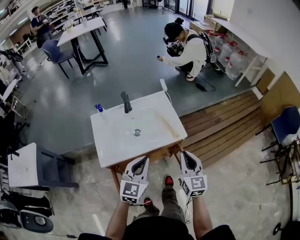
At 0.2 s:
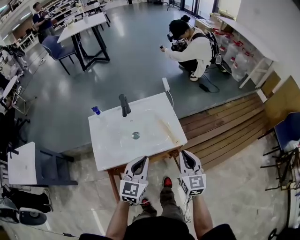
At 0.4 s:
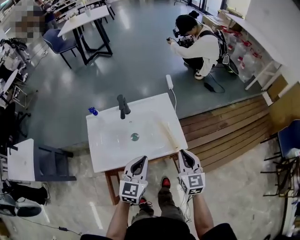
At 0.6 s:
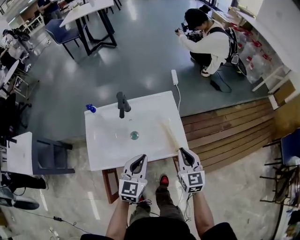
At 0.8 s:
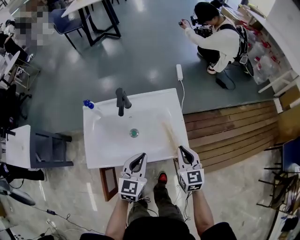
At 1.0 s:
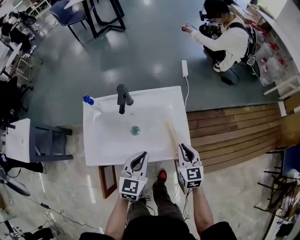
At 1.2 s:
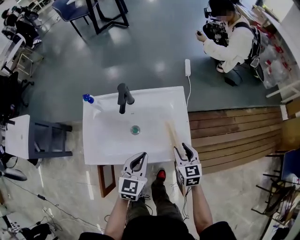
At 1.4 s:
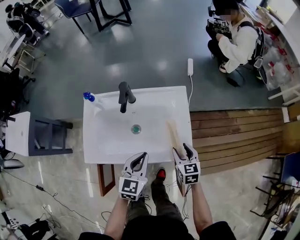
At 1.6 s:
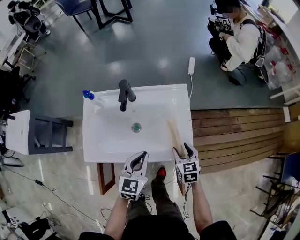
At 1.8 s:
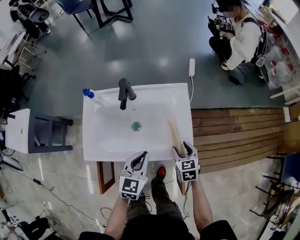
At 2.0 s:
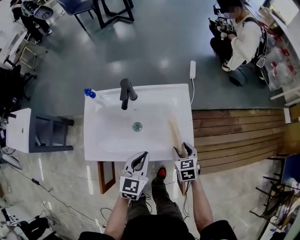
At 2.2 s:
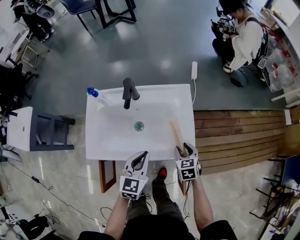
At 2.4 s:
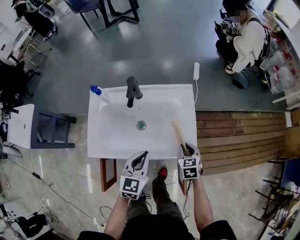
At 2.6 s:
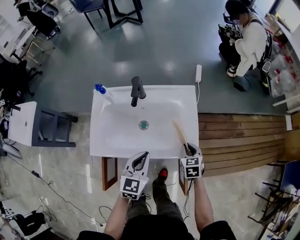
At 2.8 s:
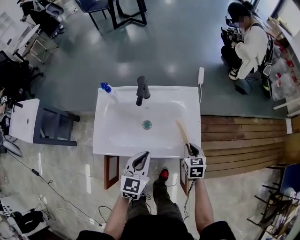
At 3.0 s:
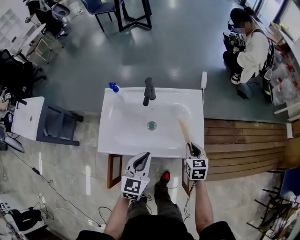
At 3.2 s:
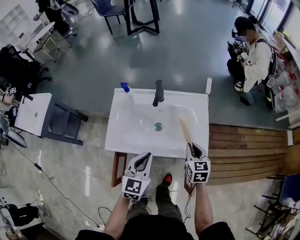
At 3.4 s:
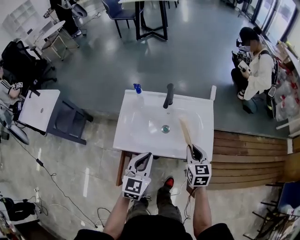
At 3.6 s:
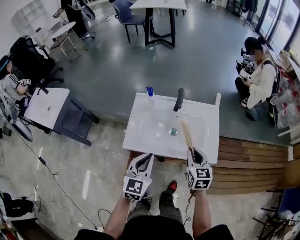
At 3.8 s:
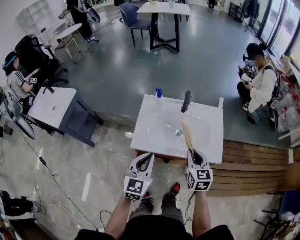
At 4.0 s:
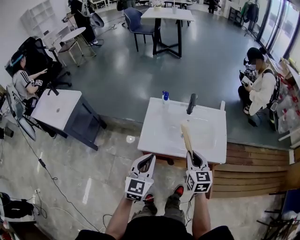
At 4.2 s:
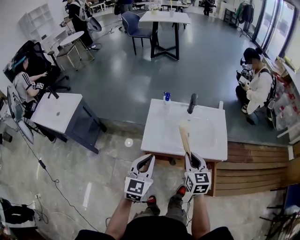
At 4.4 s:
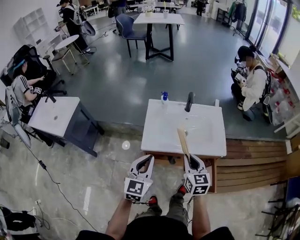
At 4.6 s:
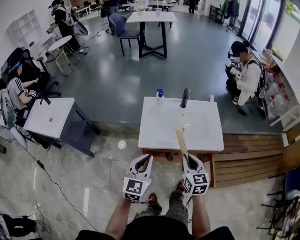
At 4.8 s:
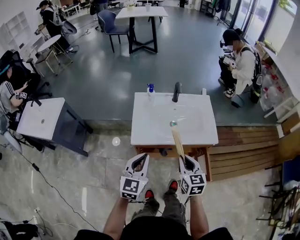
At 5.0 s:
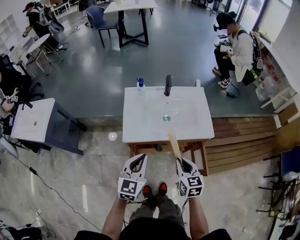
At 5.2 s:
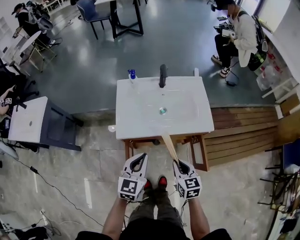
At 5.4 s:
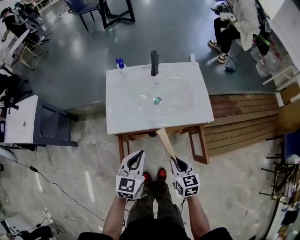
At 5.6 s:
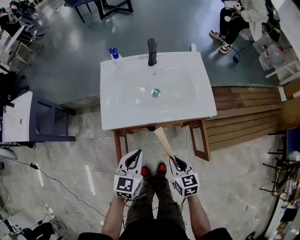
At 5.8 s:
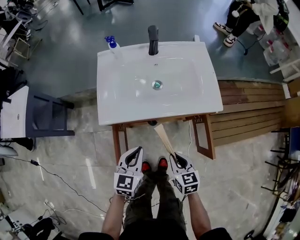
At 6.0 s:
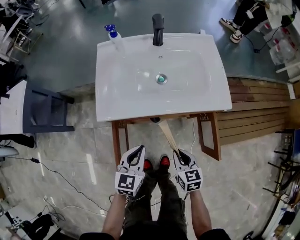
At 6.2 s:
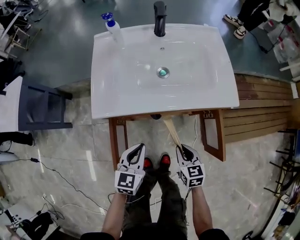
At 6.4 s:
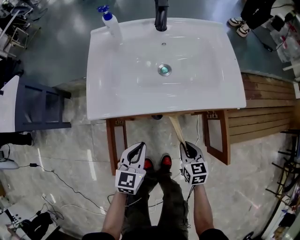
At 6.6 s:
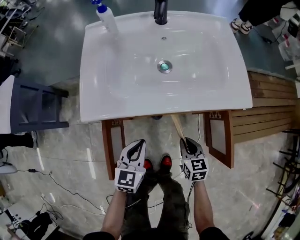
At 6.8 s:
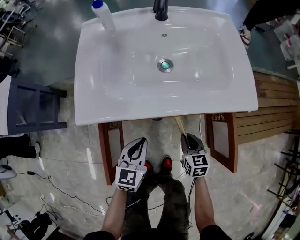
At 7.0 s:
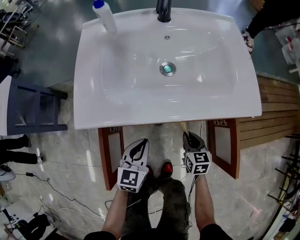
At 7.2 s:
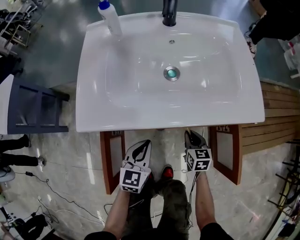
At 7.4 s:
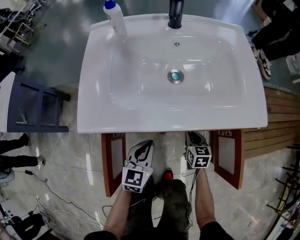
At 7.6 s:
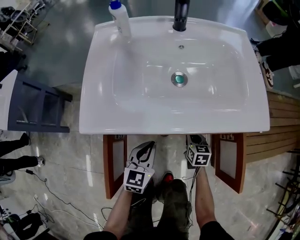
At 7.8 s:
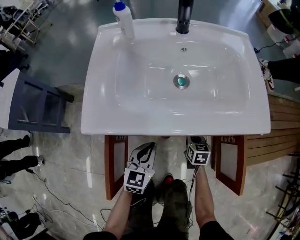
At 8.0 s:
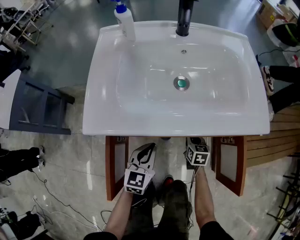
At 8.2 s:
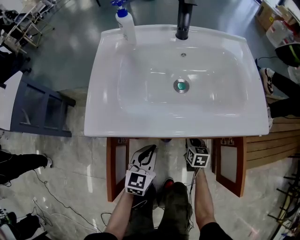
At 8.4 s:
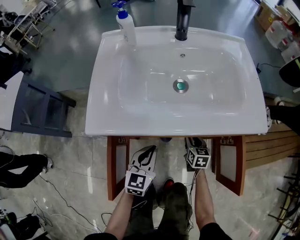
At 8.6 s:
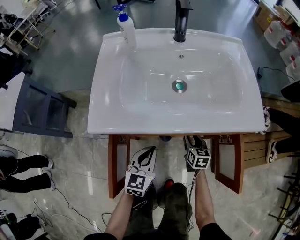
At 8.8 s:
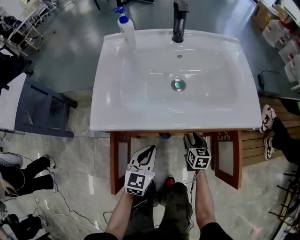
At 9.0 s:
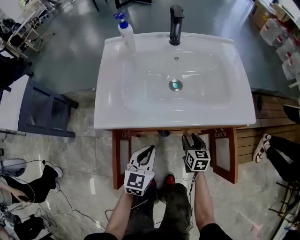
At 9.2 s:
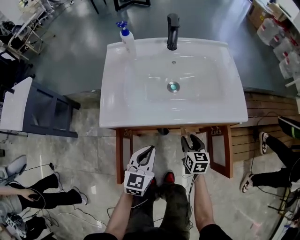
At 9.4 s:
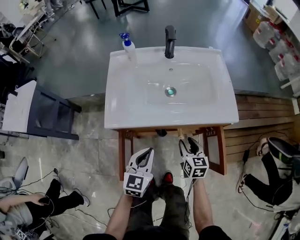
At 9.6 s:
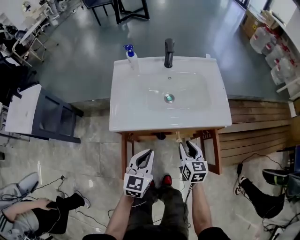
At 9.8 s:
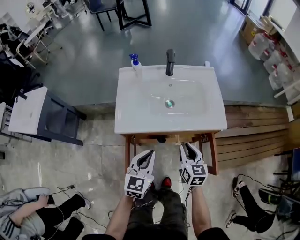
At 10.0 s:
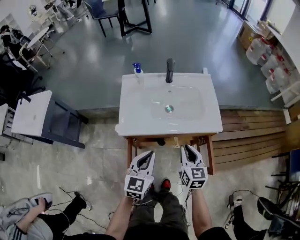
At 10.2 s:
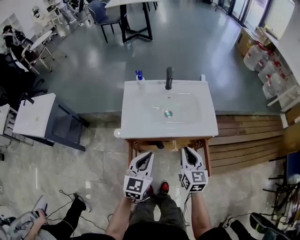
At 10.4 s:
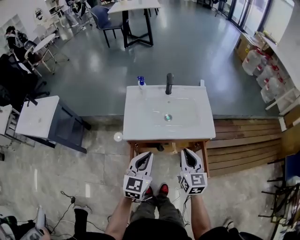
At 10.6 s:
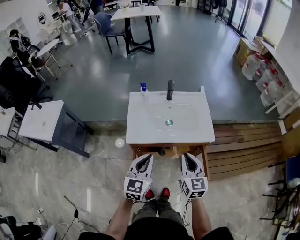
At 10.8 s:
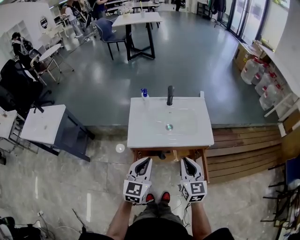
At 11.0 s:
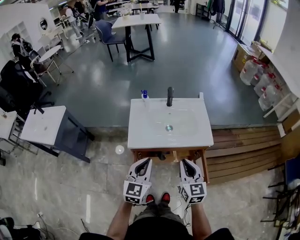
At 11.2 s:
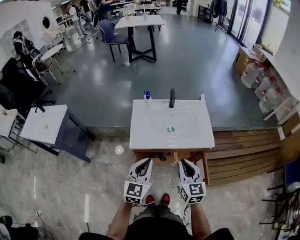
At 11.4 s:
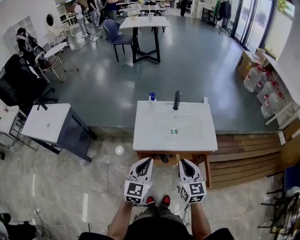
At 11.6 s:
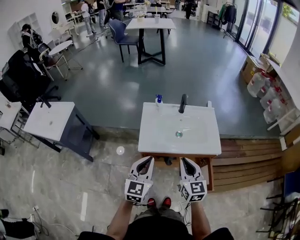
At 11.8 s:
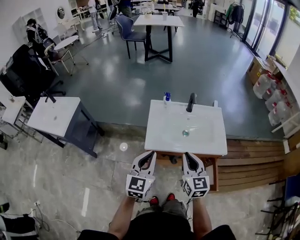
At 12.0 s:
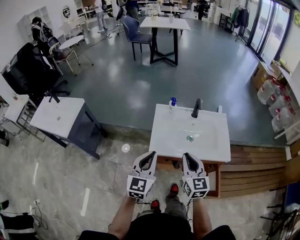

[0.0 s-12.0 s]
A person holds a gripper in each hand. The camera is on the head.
0.0 to 1.6 s: The right gripper travels downward and forward by roughly 30 cm, points its fingers about 30 degrees further downward, and opens up. The left gripper is displaced forward and downward by approximately 20 cm, and rotates roughly 30 degrees.
1.6 to 3.0 s: The left gripper ends up some 10 cm from where it was; the right gripper closes.
3.0 to 4.4 s: Both grippers travel together to the left, upward and backward, roughly 30 cm. The right gripper rotates some 20 degrees.
4.4 to 6.0 s: The two grippers go roughly 30 cm downward. The right gripper changes its angle by approximately 20 degrees. Meanwhile the left gripper rotates approximately 20 degrees.
6.0 to 7.6 s: Both grippers travel together downward and forward, some 25 cm.
7.6 to 9.0 s: Both grippers move upward, approximately 5 cm. The right gripper opens.
9.0 to 10.4 s: The two grippers go some 40 cm upward. The right gripper turns by some 20 degrees, and closes up.
10.4 to 12.0 s: The grippers both shift to the left and upward by approximately 15 cm.

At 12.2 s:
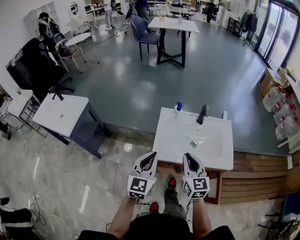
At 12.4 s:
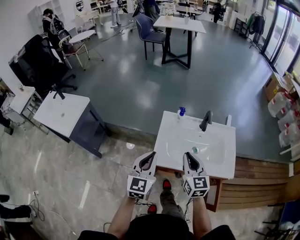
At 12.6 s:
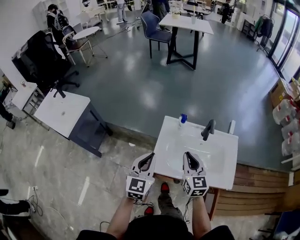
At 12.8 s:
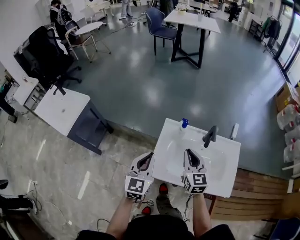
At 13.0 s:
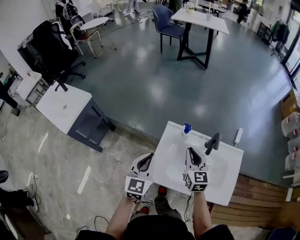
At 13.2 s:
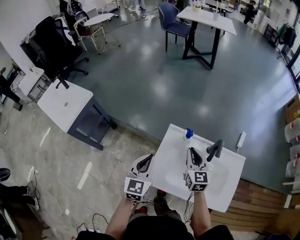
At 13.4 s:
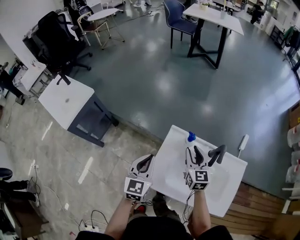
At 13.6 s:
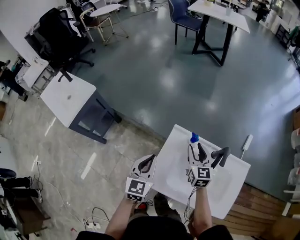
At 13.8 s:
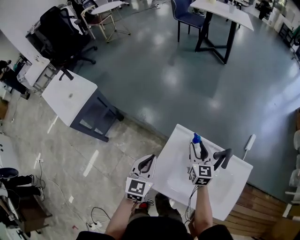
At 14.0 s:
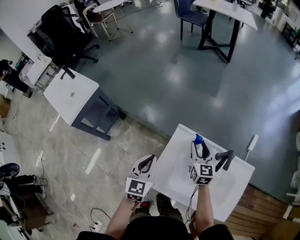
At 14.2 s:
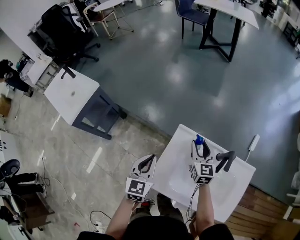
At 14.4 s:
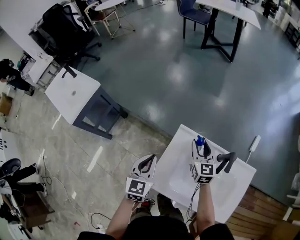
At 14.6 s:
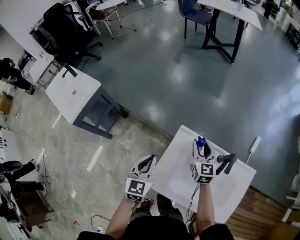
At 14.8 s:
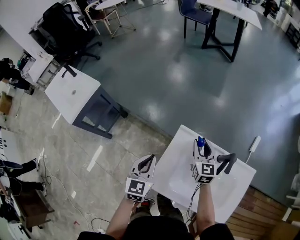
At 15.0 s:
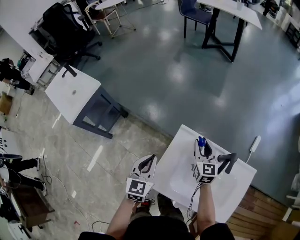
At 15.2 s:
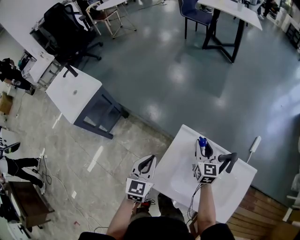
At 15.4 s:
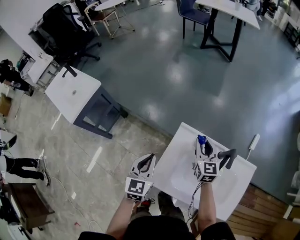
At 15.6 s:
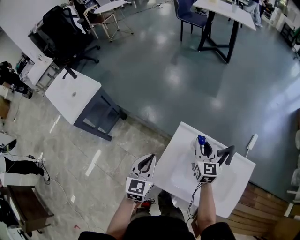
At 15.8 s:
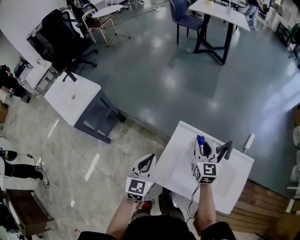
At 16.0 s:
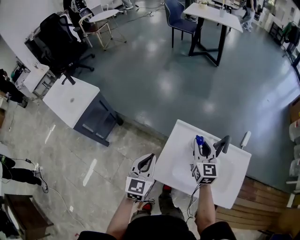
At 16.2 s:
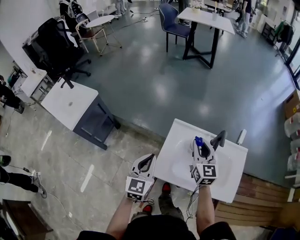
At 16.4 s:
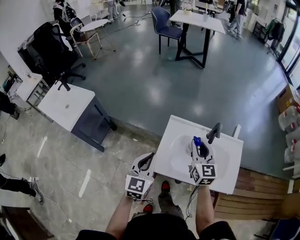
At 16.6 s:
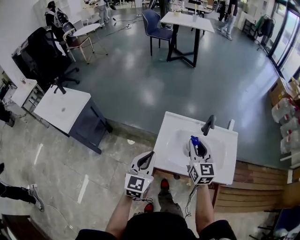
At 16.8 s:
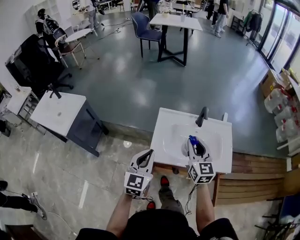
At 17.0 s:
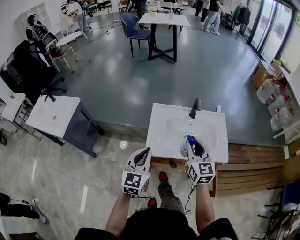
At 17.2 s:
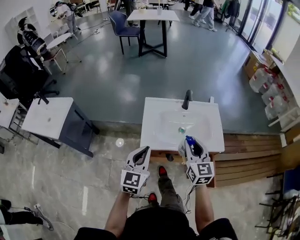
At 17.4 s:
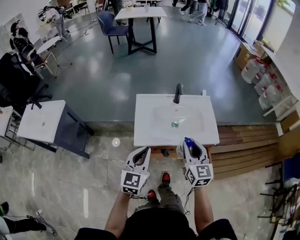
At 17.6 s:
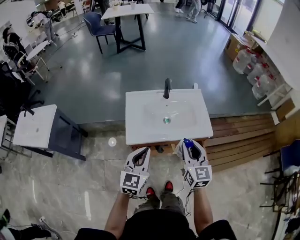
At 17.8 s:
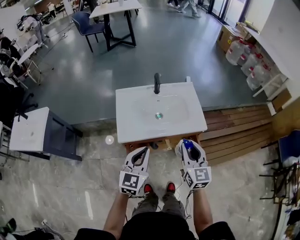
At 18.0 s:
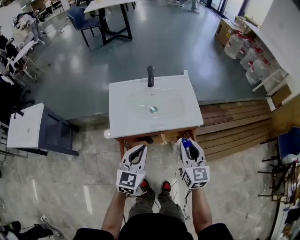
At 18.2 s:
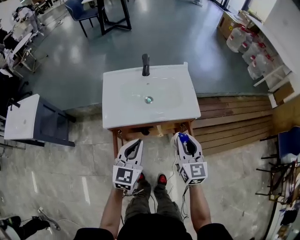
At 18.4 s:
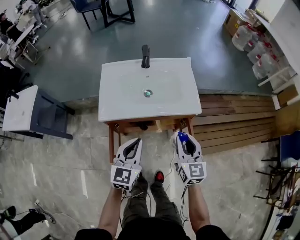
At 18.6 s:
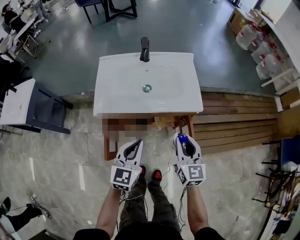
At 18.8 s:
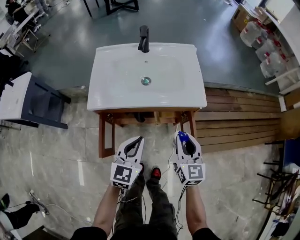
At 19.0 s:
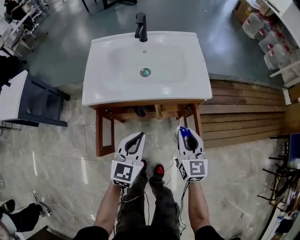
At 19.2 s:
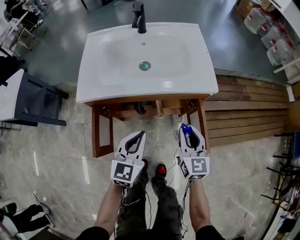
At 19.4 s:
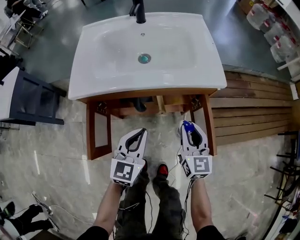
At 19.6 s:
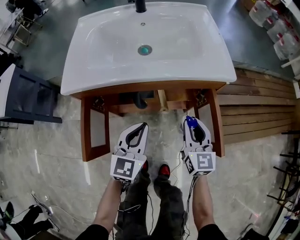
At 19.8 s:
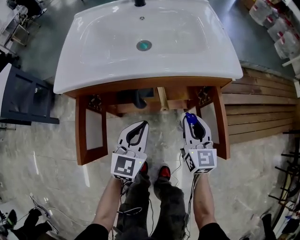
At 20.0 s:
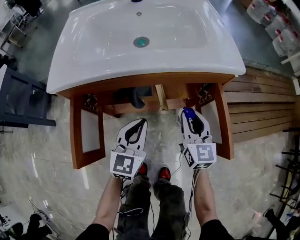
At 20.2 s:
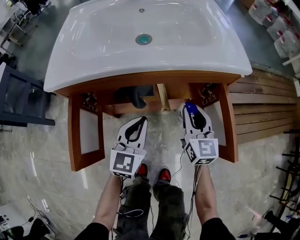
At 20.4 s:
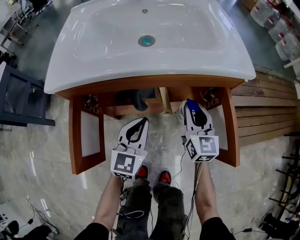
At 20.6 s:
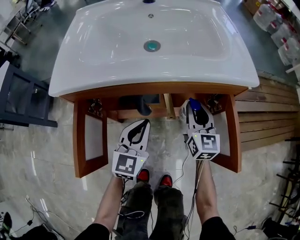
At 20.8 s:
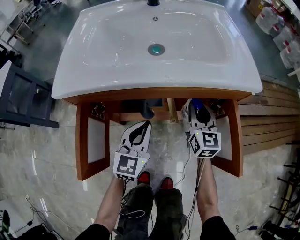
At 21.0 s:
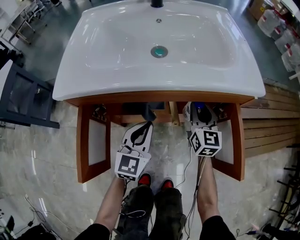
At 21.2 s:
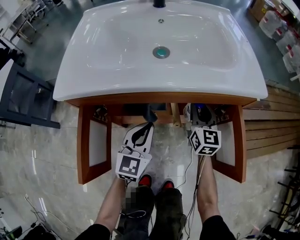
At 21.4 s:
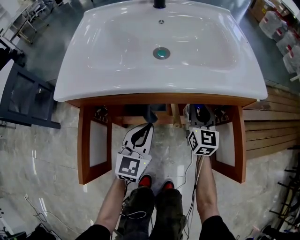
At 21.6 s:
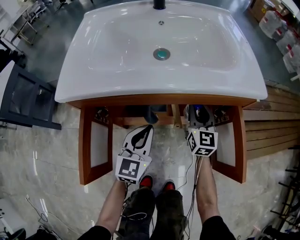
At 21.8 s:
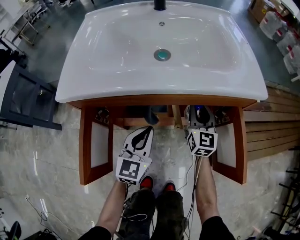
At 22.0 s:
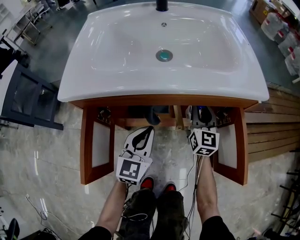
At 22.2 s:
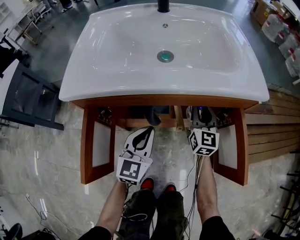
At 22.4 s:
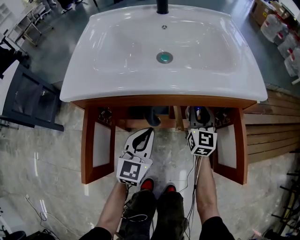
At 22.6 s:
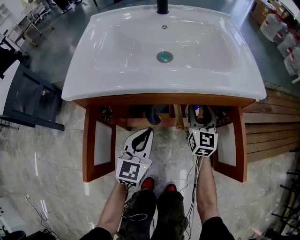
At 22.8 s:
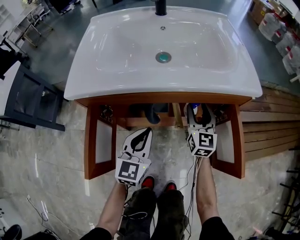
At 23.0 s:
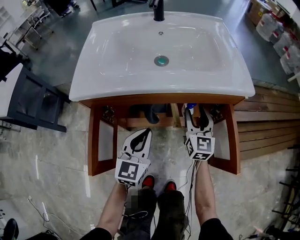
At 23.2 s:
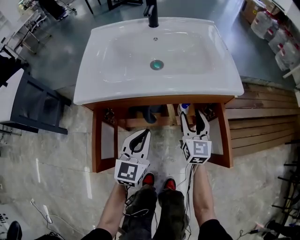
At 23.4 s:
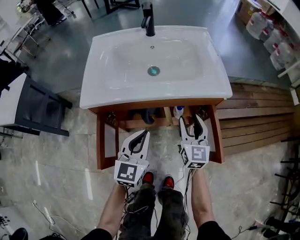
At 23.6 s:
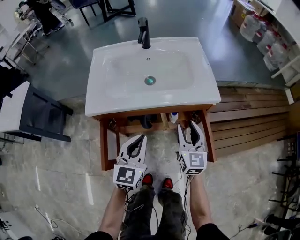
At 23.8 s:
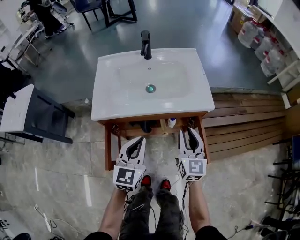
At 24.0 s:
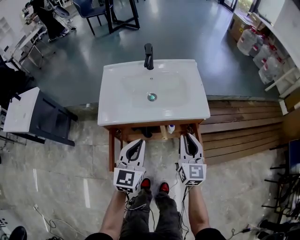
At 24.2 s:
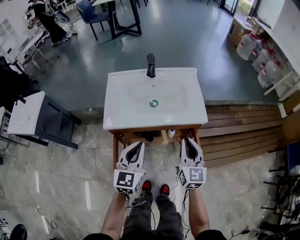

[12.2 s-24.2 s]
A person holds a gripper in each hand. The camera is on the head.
12.2 to 13.8 s: The right gripper travels forward by roughly 35 cm, and opens its fingers; the left gripper moves forward and downward, roughly 25 cm, and rotates roughly 20 degrees.
13.8 to 15.2 s: The grippers stay close to where they were, moving slightly.
15.2 to 16.6 s: Both grippers travel together backward and upward, roughly 20 cm. The left gripper swivels approximately 20 degrees.
16.6 to 18.2 s: The grippers both shift to the right and backward by some 30 cm. The left gripper turns by roughly 20 degrees.
18.2 to 19.8 s: The grippers both shift downward by some 35 cm.
19.8 to 21.2 s: The right gripper travels forward and downward by about 15 cm, while the left gripper shifts approximately 10 cm downward and forward.
21.2 to 22.6 s: The right gripper opens its fingers.
22.6 to 24.2 s: The left gripper shifts some 35 cm upward. Meanwhile the right gripper heads upward and backward, covering about 40 cm, and closes up.
